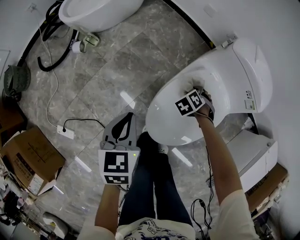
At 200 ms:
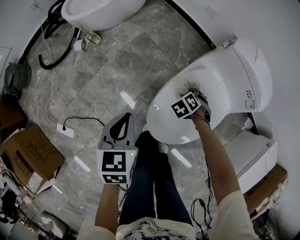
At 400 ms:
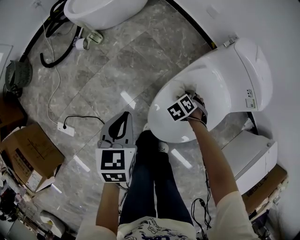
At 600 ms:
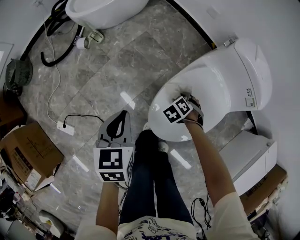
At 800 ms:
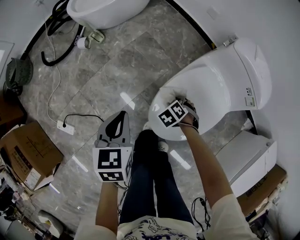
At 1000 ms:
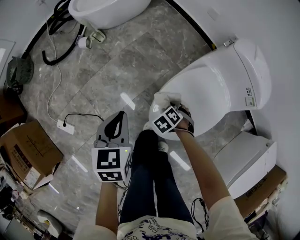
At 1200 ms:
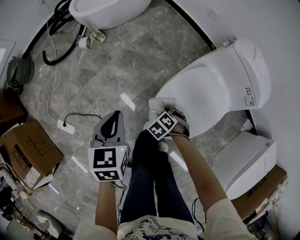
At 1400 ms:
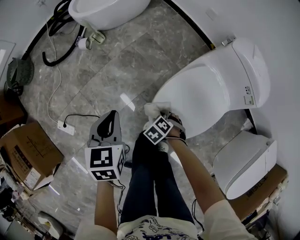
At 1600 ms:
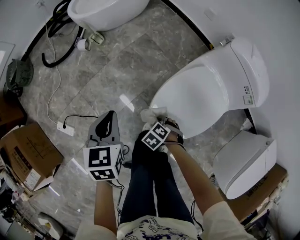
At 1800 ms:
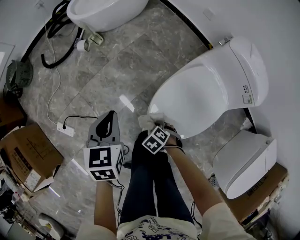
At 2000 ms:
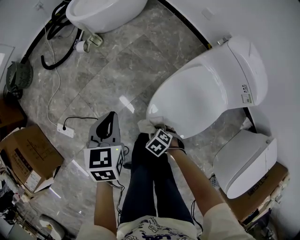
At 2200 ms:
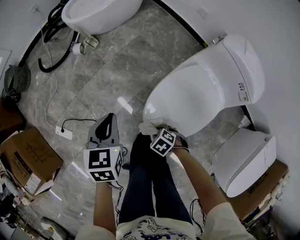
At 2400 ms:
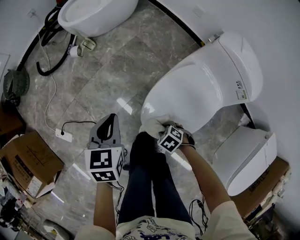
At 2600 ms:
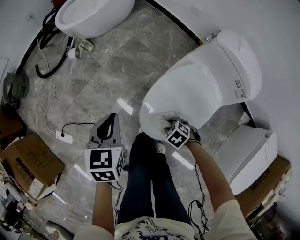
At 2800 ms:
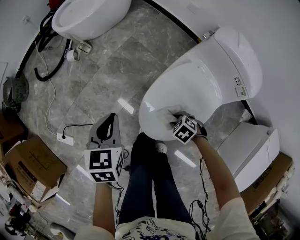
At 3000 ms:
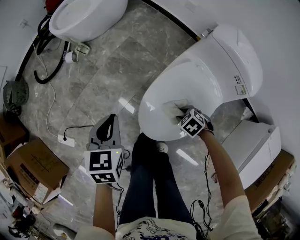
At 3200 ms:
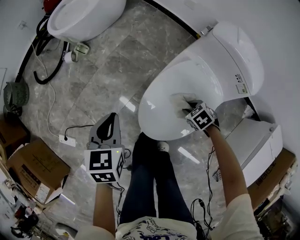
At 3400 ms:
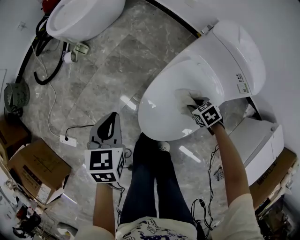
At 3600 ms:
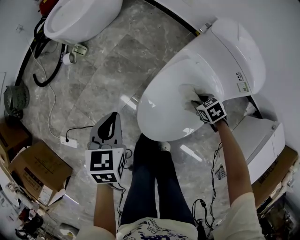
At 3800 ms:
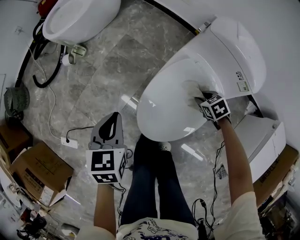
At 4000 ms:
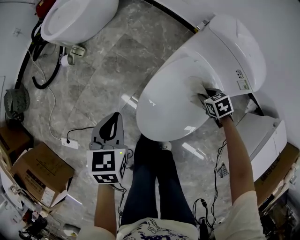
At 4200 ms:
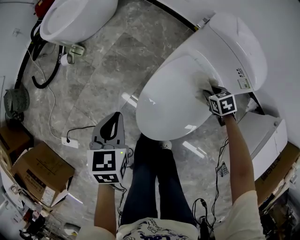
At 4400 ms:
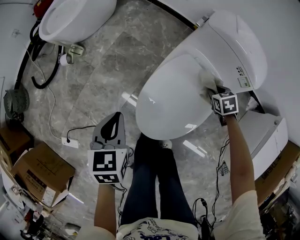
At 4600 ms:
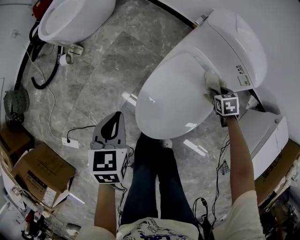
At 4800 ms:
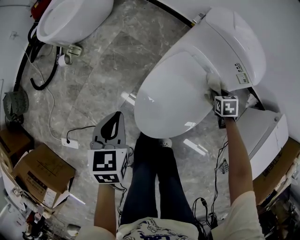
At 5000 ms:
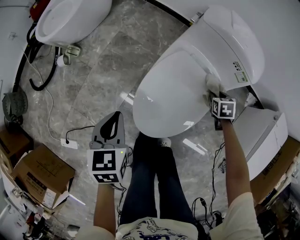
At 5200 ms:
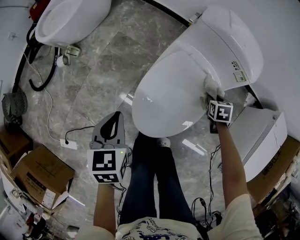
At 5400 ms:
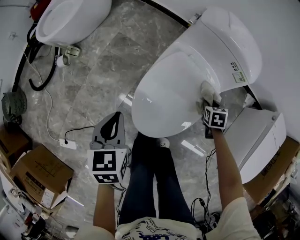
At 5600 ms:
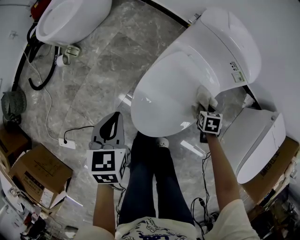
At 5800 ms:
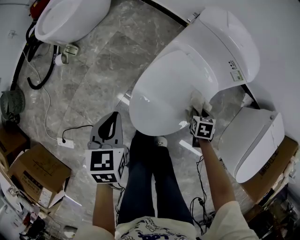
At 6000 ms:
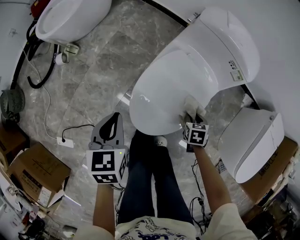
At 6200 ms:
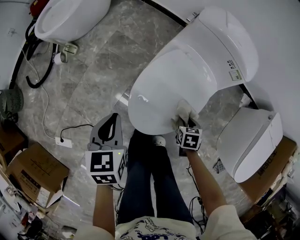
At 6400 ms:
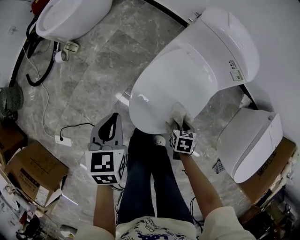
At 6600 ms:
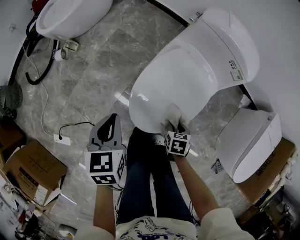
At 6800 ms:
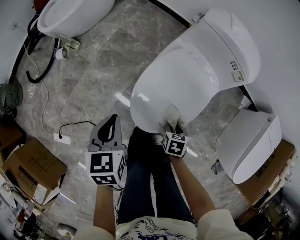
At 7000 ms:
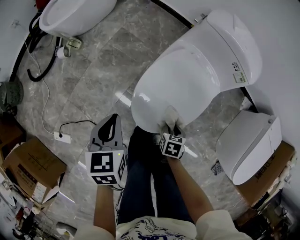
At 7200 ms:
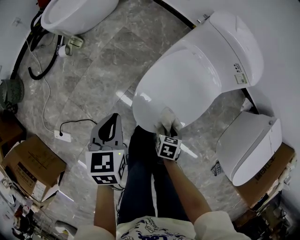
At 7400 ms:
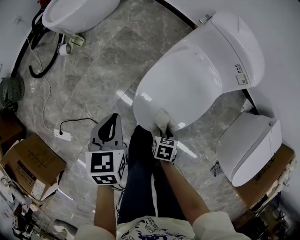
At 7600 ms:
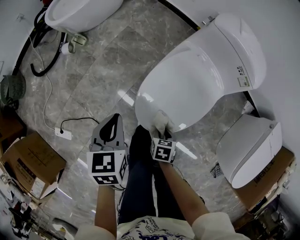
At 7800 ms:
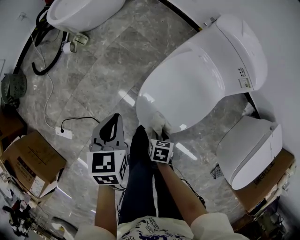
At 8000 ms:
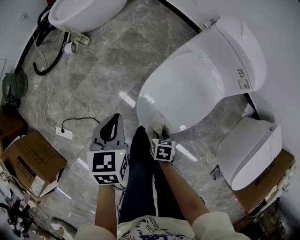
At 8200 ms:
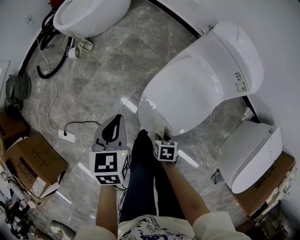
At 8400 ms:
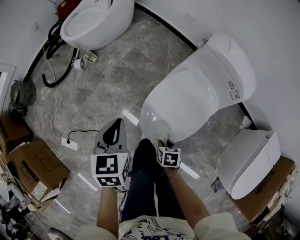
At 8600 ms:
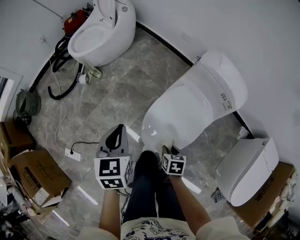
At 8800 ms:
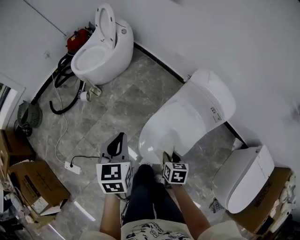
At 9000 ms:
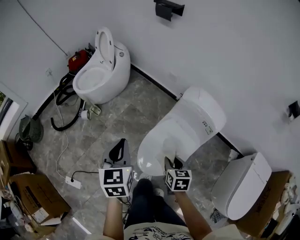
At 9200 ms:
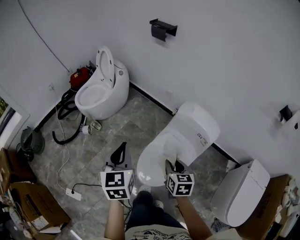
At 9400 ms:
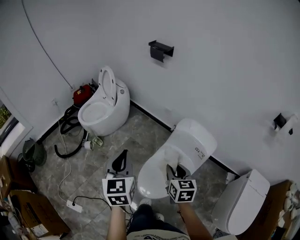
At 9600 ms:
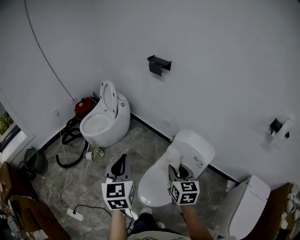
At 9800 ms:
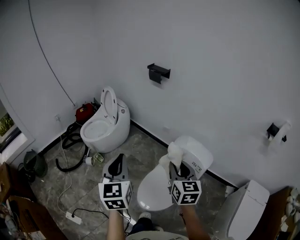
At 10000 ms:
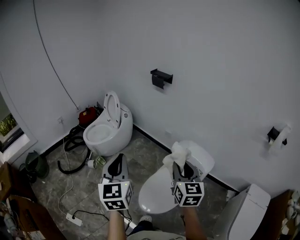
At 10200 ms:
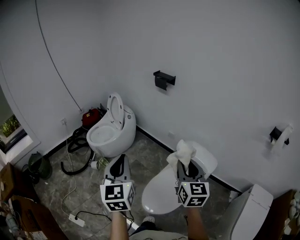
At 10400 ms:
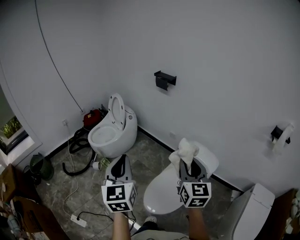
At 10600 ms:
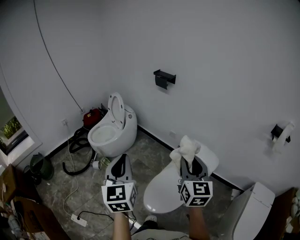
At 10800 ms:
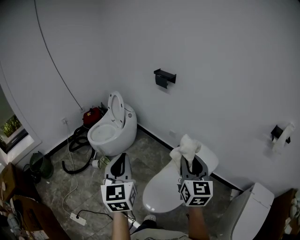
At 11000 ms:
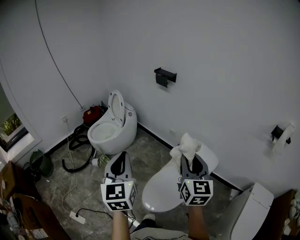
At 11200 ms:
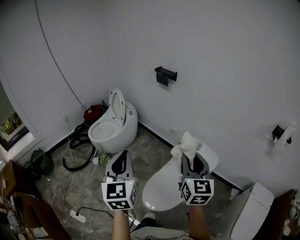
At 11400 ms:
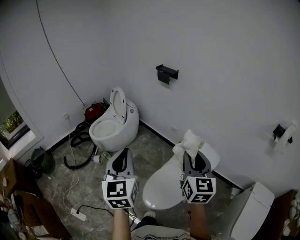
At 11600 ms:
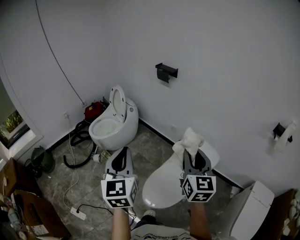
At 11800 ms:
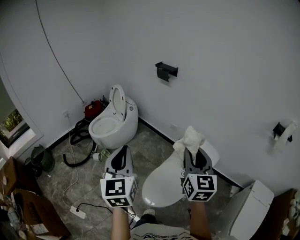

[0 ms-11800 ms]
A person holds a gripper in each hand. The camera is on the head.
0 ms to 1400 ms: The left gripper changes place by about 10 cm. The right gripper changes place by some 25 cm, and turns by approximately 20 degrees.
1400 ms to 3000 ms: The right gripper moves some 15 cm; the left gripper shifts by approximately 5 cm.
3000 ms to 4400 ms: The left gripper ends up roughly 5 cm from where it was, while the right gripper changes place by some 20 cm, and rotates some 40 degrees.
4400 ms to 6000 ms: The right gripper is displaced backward by approximately 15 cm, and changes its angle by about 20 degrees.
6000 ms to 7400 ms: The right gripper shifts about 20 cm to the left and backward.
7400 ms to 8800 ms: The grippers both shift upward by approximately 20 cm.
8800 ms to 10400 ms: The left gripper is displaced upward by approximately 30 cm, and tilts its fingers some 30 degrees upward, while the right gripper goes approximately 50 cm upward, and points its fingers about 50 degrees further upward.
10400 ms to 11800 ms: There are only small adjustments of the grippers.

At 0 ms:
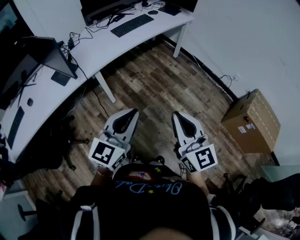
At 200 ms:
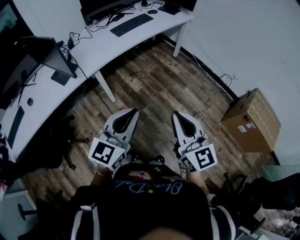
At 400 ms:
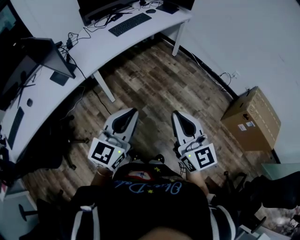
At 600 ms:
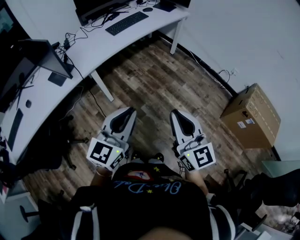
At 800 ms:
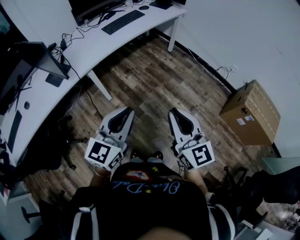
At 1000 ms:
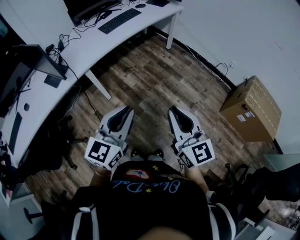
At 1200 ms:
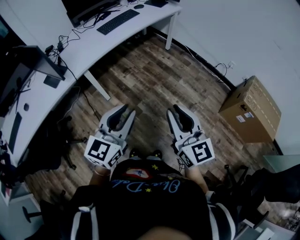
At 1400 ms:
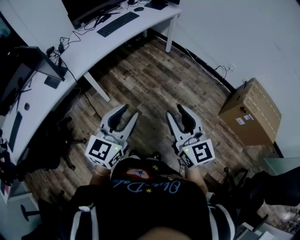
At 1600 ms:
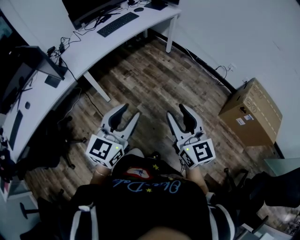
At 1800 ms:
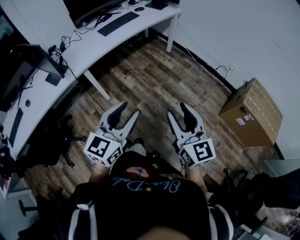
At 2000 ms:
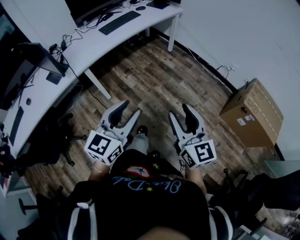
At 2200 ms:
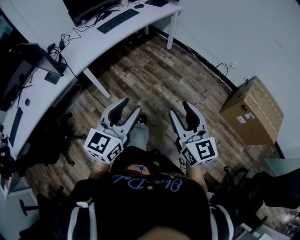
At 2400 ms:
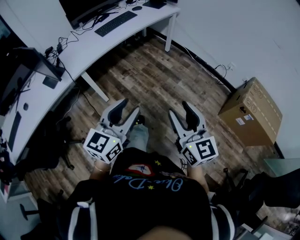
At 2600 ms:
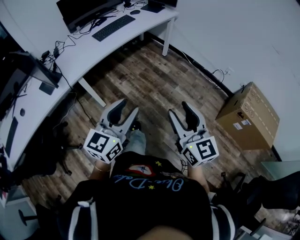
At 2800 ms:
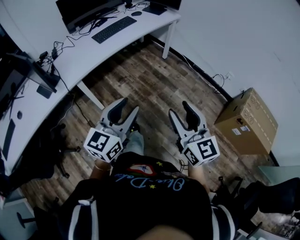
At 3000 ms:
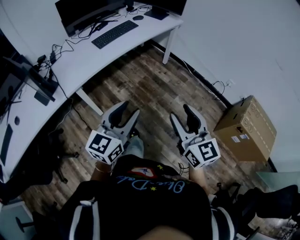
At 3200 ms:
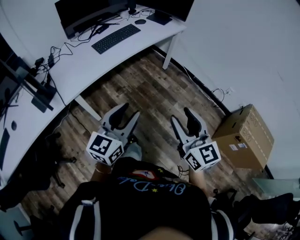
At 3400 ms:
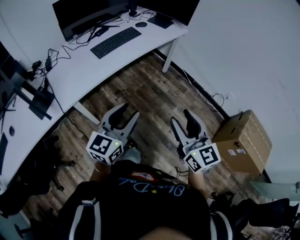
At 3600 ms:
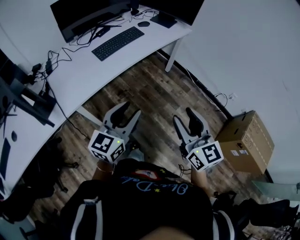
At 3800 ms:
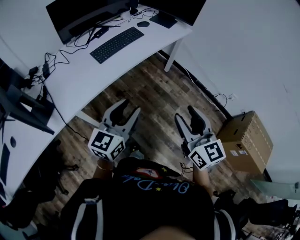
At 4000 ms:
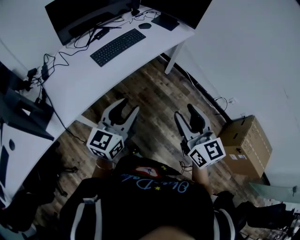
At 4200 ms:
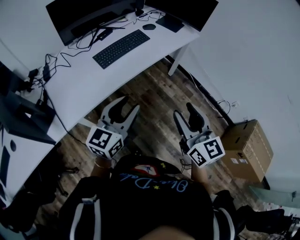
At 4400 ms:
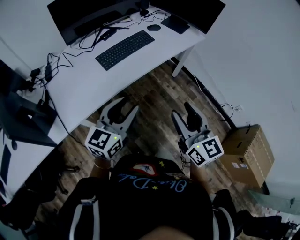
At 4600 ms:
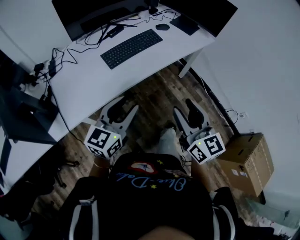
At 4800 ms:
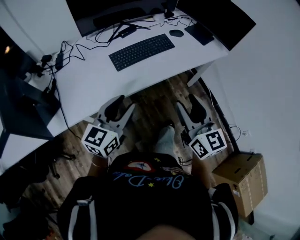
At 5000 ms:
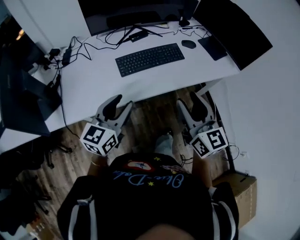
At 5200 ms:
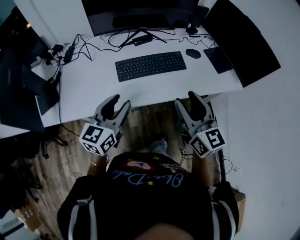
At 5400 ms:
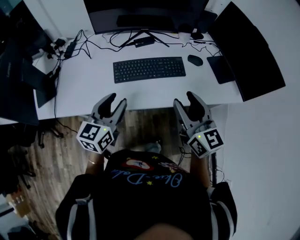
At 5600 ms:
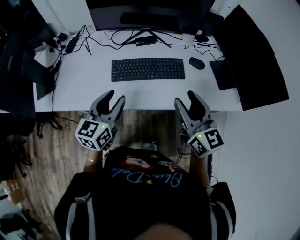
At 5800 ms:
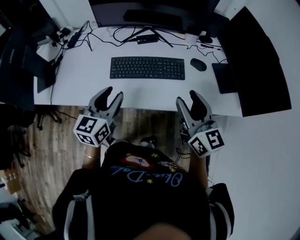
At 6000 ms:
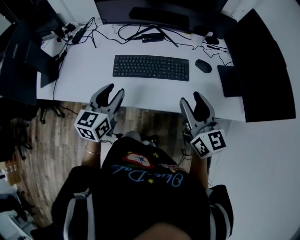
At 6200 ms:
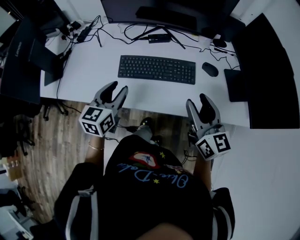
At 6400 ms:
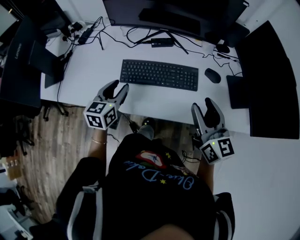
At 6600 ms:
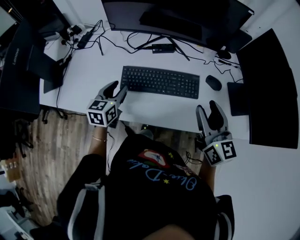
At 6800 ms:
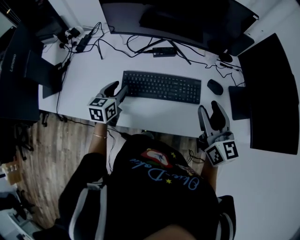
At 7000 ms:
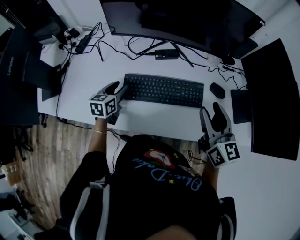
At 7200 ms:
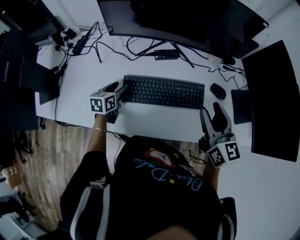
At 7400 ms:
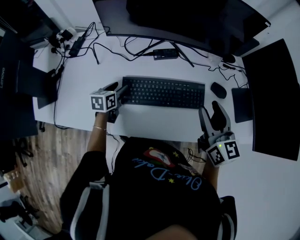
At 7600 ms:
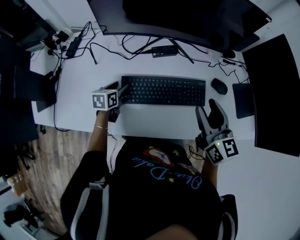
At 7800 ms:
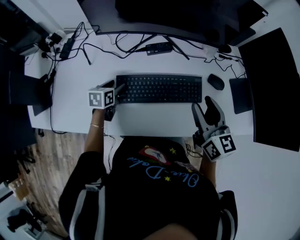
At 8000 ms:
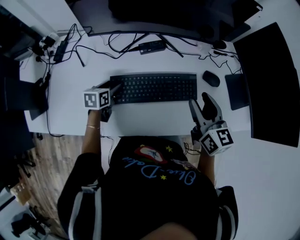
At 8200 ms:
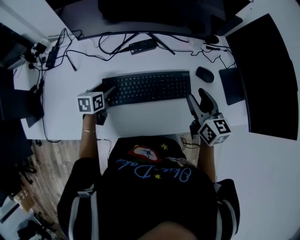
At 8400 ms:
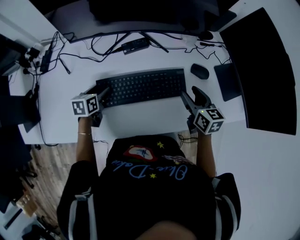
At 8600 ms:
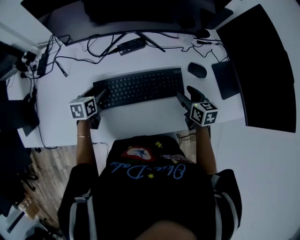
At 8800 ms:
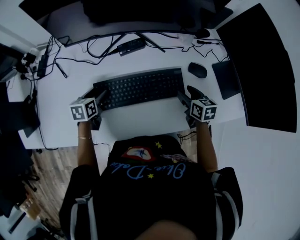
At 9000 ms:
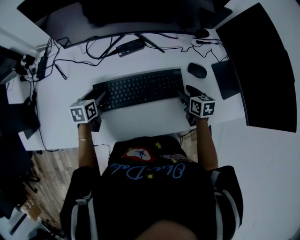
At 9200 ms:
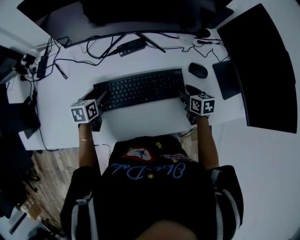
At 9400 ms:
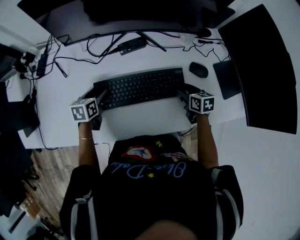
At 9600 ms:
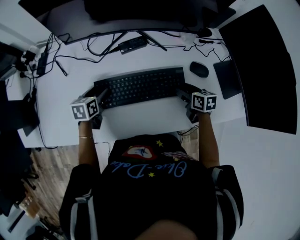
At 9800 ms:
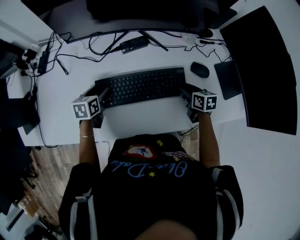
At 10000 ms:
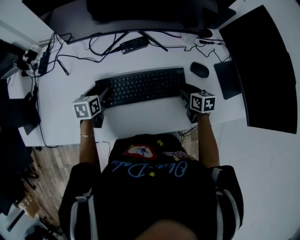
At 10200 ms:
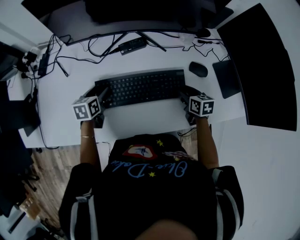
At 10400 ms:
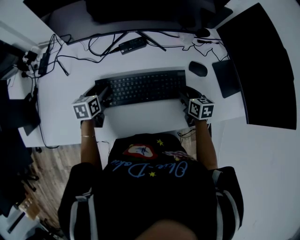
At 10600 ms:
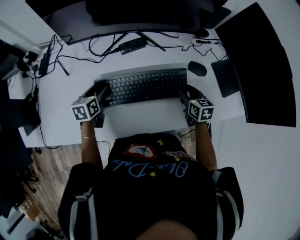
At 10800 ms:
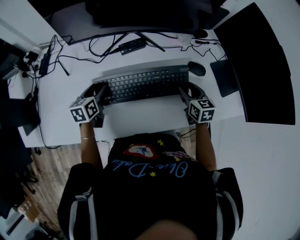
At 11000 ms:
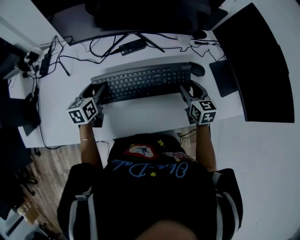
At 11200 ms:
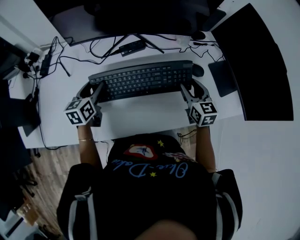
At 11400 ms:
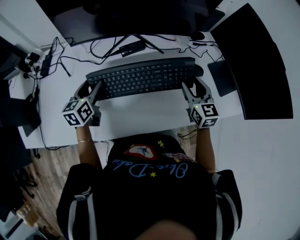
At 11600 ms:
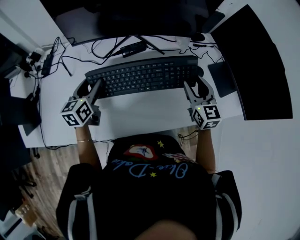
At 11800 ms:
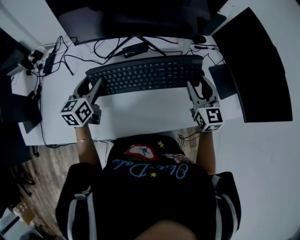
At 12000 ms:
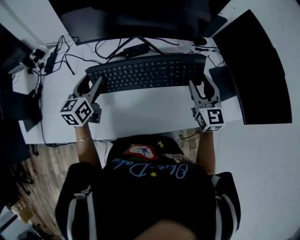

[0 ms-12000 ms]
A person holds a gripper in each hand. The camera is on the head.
0 ms to 1600 ms: The grippers both shift to the right by roughly 10 cm. The right gripper opens its fingers. The left gripper opens up.
1600 ms to 3000 ms: Both grippers travel together forward, roughly 15 cm.
3000 ms to 4400 ms: The left gripper heads forward and to the left, covering approximately 30 cm. The right gripper moves forward, some 30 cm.
4400 ms to 6000 ms: The right gripper shifts by approximately 40 cm, and swivels some 40 degrees. Meanwhile the left gripper ends up approximately 25 cm from where it was, and rotates about 50 degrees.
6000 ms to 7600 ms: The left gripper is displaced forward, downward and to the left by approximately 30 cm, and turns by about 30 degrees, while the right gripper heads forward, covering approximately 15 cm.
7600 ms to 9000 ms: The right gripper is displaced downward and to the right by some 25 cm, and tips its fingers downward by about 30 degrees.
9000 ms to 10400 ms: There are only small adjustments of the grippers.
10400 ms to 12000 ms: The two grippers go roughly 20 cm upward. The left gripper turns by about 30 degrees; the right gripper points its fingers roughly 30 degrees further upward.
